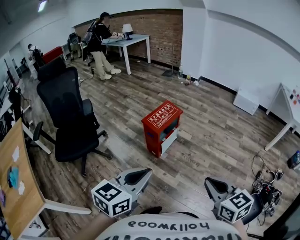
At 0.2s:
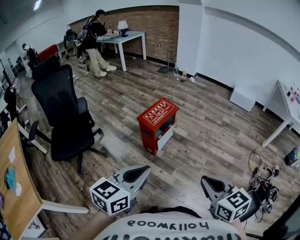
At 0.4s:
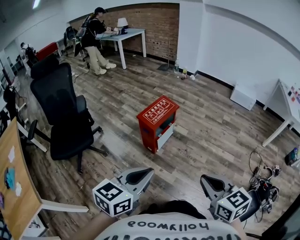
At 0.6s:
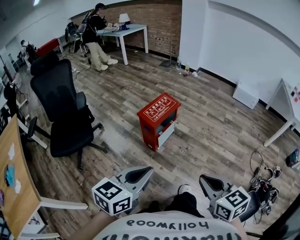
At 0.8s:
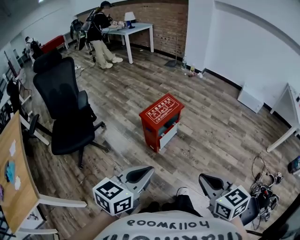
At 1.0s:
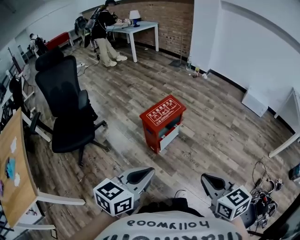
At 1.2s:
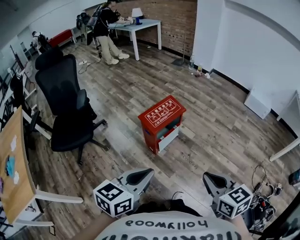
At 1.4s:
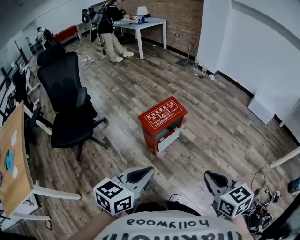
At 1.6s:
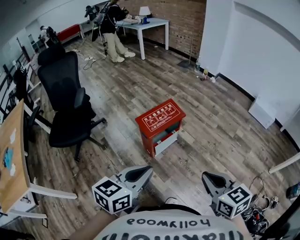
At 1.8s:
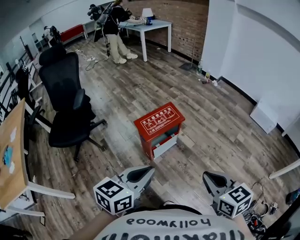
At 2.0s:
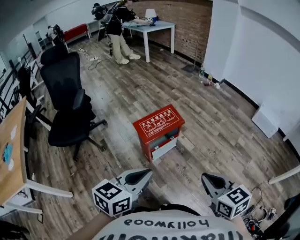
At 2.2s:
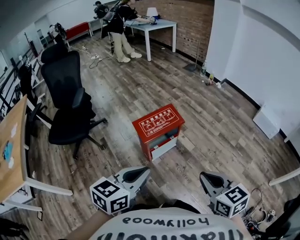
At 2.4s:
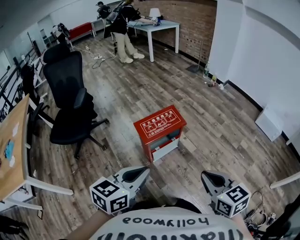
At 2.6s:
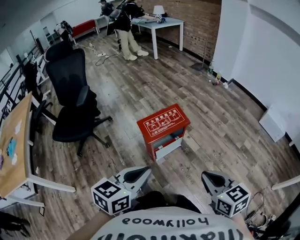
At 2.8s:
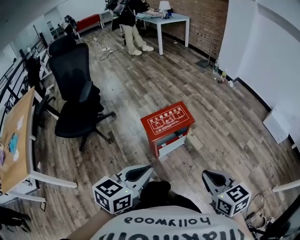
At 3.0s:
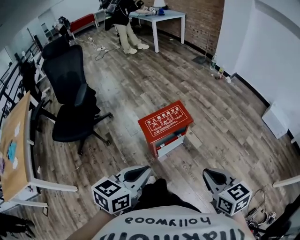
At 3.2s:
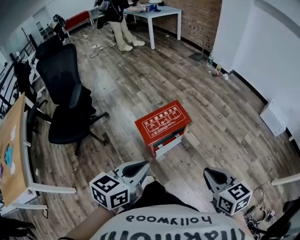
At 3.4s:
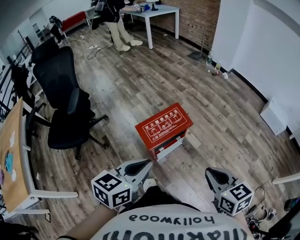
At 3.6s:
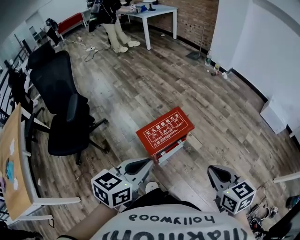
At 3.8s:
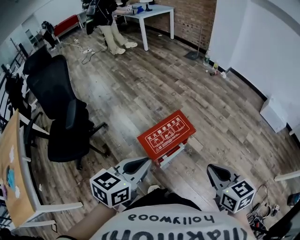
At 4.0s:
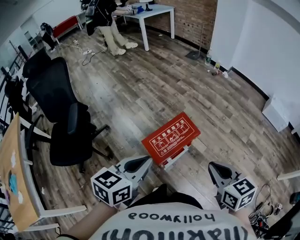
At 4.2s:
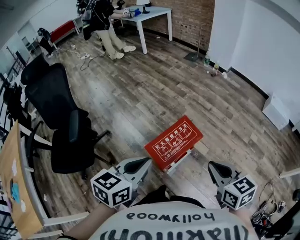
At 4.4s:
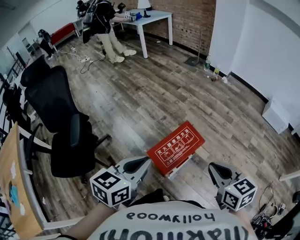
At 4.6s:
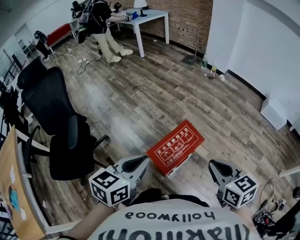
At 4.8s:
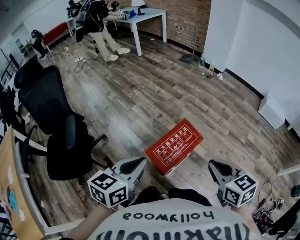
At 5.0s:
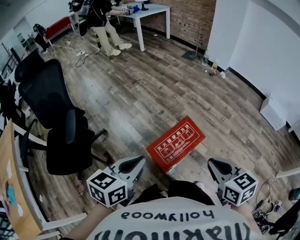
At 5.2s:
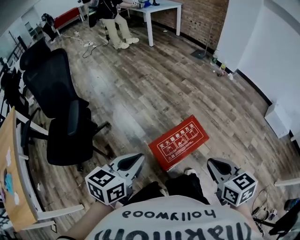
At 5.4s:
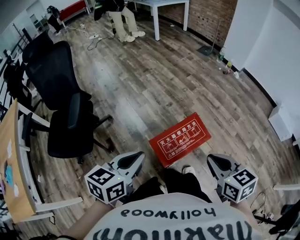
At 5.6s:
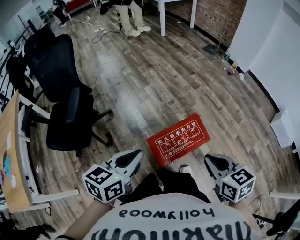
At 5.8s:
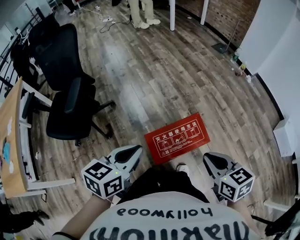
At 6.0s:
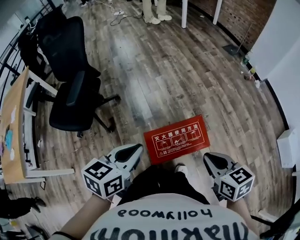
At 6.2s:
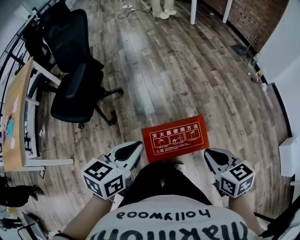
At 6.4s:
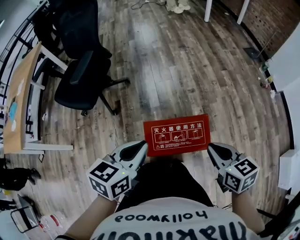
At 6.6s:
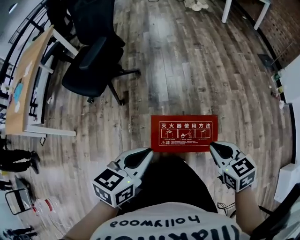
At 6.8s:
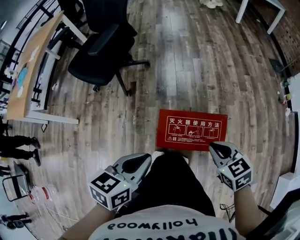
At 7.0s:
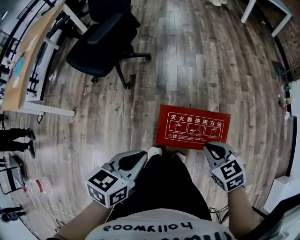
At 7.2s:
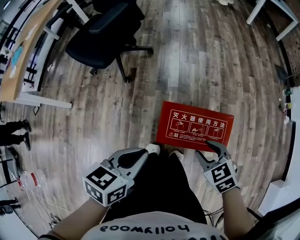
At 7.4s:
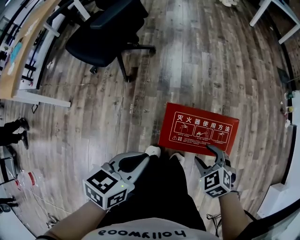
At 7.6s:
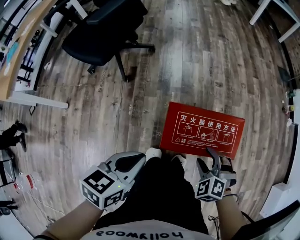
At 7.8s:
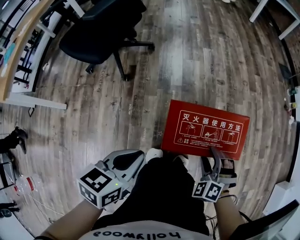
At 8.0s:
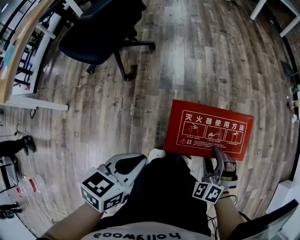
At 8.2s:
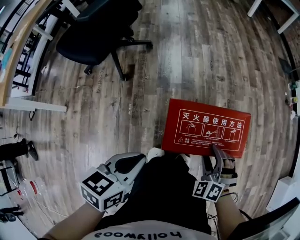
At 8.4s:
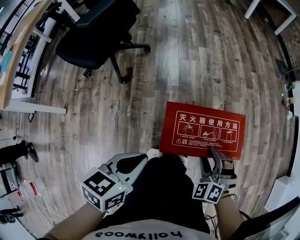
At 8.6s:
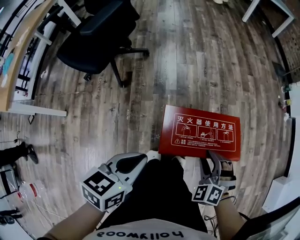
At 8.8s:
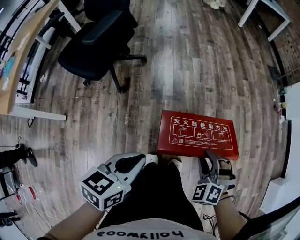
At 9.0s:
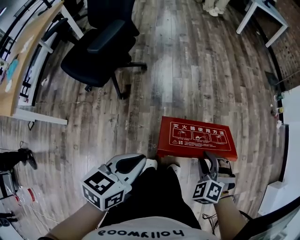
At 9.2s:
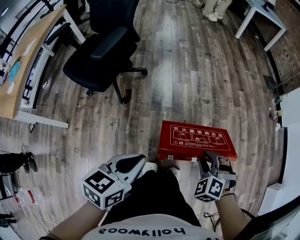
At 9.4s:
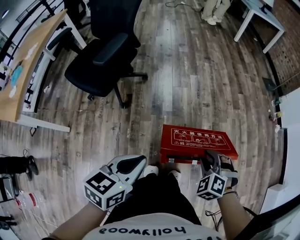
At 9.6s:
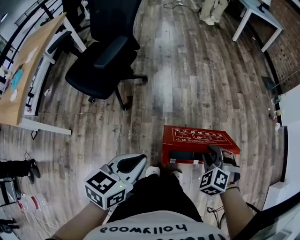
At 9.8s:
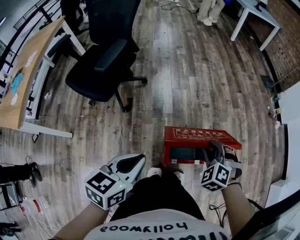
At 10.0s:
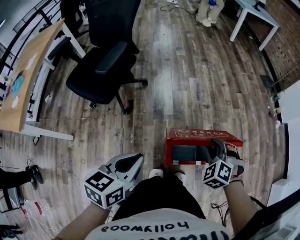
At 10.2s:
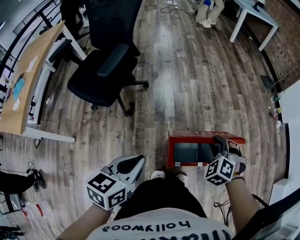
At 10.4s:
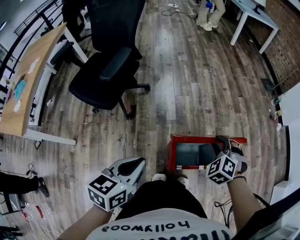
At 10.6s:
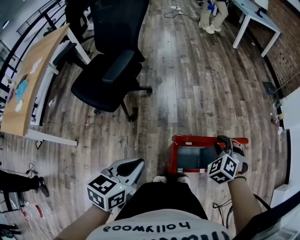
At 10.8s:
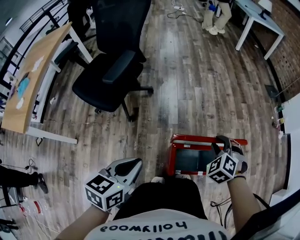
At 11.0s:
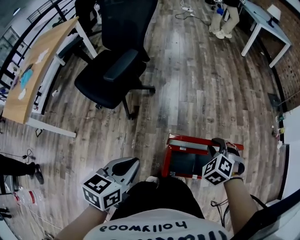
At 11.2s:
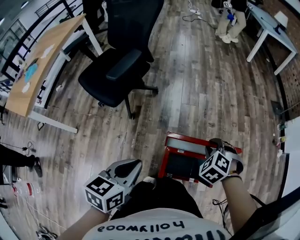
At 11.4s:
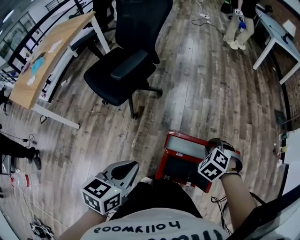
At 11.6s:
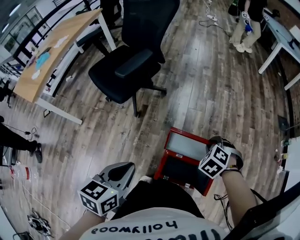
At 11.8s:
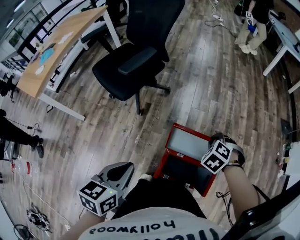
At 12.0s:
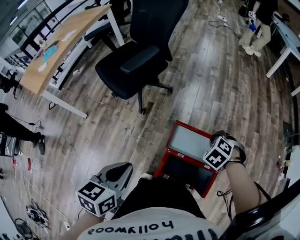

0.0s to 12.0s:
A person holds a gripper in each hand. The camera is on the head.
0.0s to 1.6s: Both grippers travel together forward and to the right, roughly 20 cm.
1.6s to 3.0s: The two grippers go about 10 cm forward.
3.0s to 4.4s: The two grippers go roughly 25 cm forward and to the left.
4.4s to 6.0s: The right gripper moves approximately 15 cm, and changes its angle by some 30 degrees. Meanwhile the left gripper goes about 5 cm downward, and rotates approximately 30 degrees.
6.0s to 7.6s: The left gripper is displaced downward and backward by some 20 cm, and swivels about 20 degrees; the right gripper heads downward, covering approximately 25 cm, twists approximately 70 degrees counterclockwise, seen from behind, and opens.
7.6s to 9.0s: The grippers both shift upward by about 10 cm. The right gripper closes.
9.0s to 10.4s: The left gripper shifts roughly 5 cm to the left. The right gripper heads forward and upward, covering roughly 10 cm.
10.4s to 12.0s: The left gripper swivels about 30 degrees, while the right gripper goes about 15 cm forward, and rotates roughly 20 degrees.

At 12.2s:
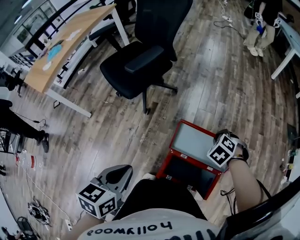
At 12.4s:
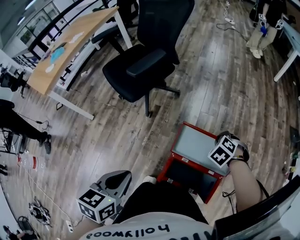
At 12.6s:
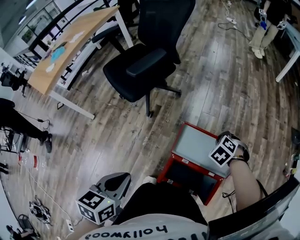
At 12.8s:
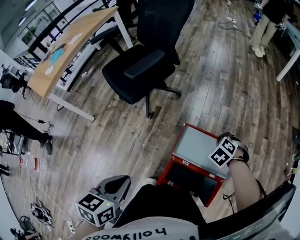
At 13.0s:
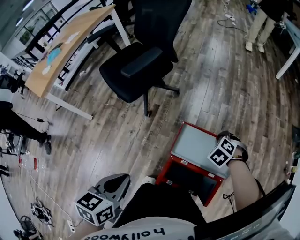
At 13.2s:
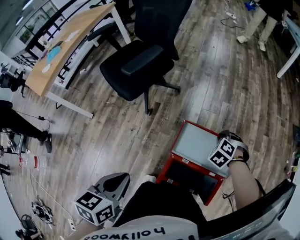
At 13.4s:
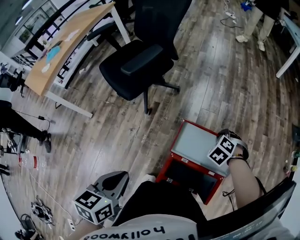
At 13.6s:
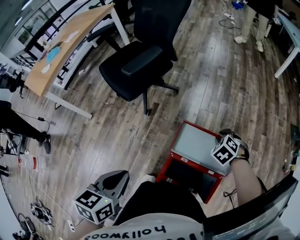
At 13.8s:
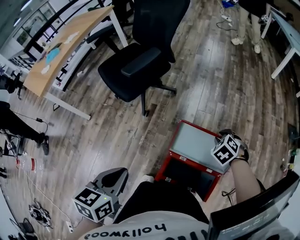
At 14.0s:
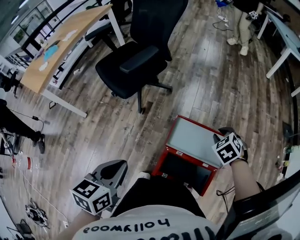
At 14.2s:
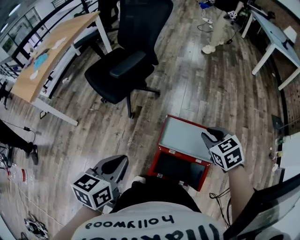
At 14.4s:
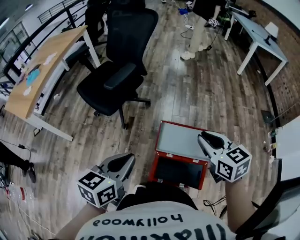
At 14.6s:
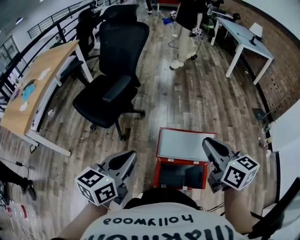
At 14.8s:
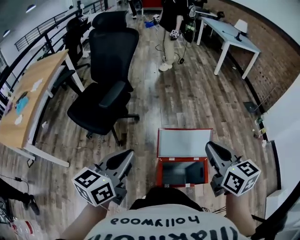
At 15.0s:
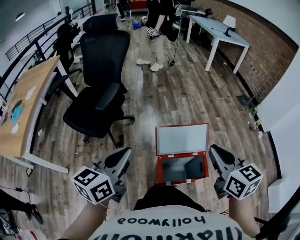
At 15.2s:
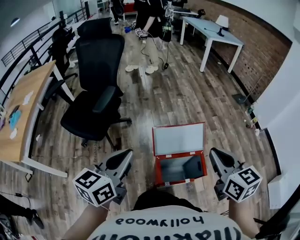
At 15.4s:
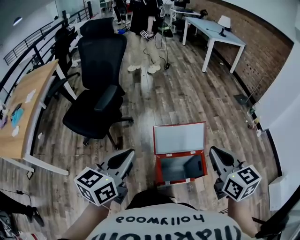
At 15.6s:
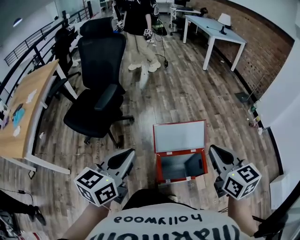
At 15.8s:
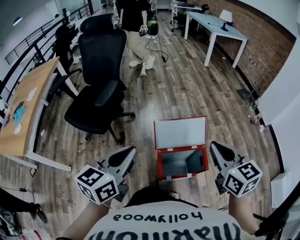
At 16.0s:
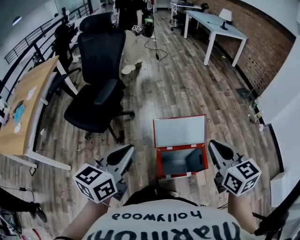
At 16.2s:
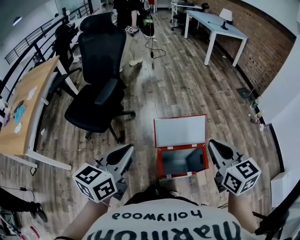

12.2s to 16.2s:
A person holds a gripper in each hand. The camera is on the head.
12.2s to 13.6s: The right gripper changes place by approximately 5 cm.
13.6s to 14.8s: The left gripper travels upward by approximately 15 cm, and tips its fingers upward by approximately 30 degrees. Meanwhile the right gripper moves upward and backward, approximately 40 cm, and angles its fingers upward, by approximately 50 degrees.
14.8s to 16.2s: The right gripper moves backward, roughly 5 cm.

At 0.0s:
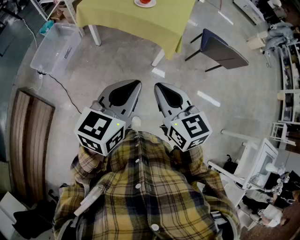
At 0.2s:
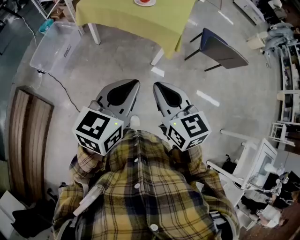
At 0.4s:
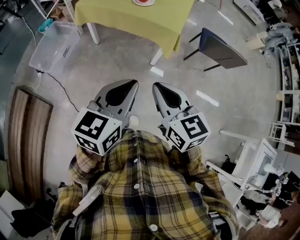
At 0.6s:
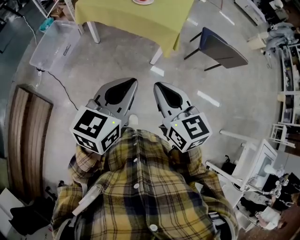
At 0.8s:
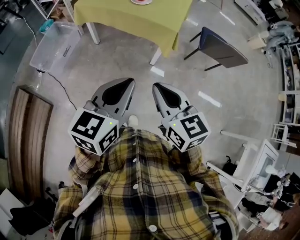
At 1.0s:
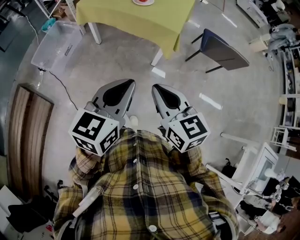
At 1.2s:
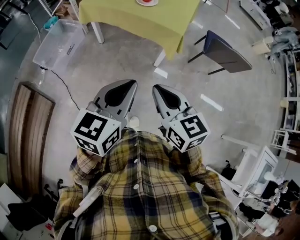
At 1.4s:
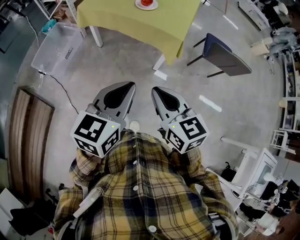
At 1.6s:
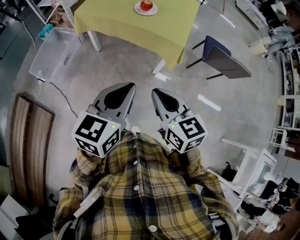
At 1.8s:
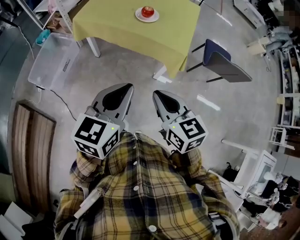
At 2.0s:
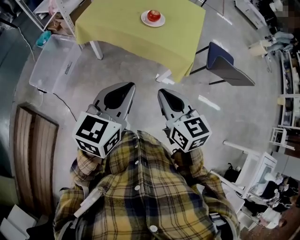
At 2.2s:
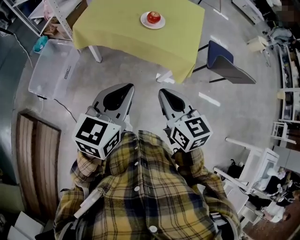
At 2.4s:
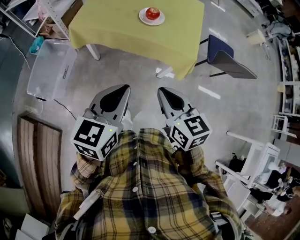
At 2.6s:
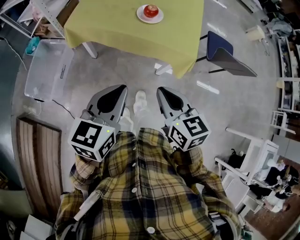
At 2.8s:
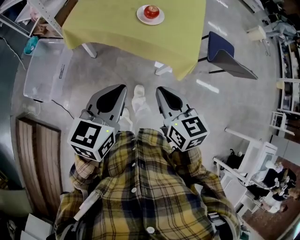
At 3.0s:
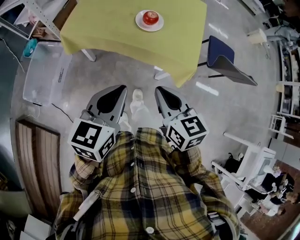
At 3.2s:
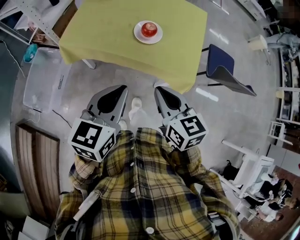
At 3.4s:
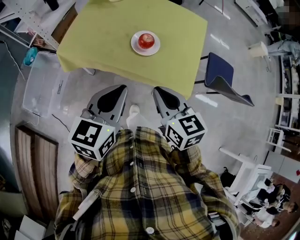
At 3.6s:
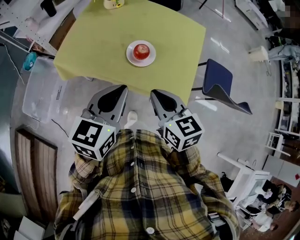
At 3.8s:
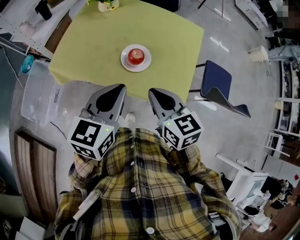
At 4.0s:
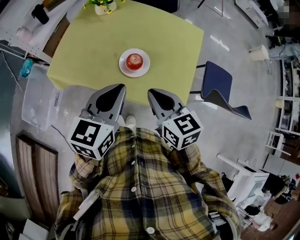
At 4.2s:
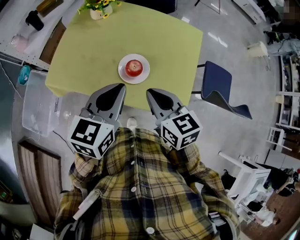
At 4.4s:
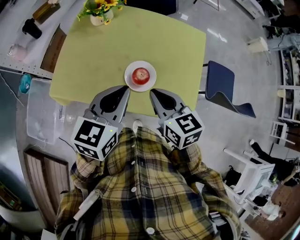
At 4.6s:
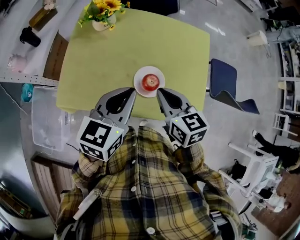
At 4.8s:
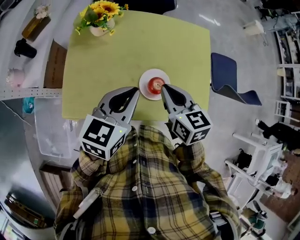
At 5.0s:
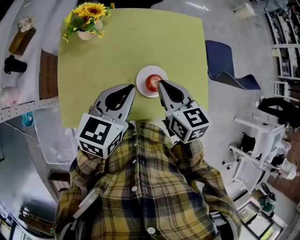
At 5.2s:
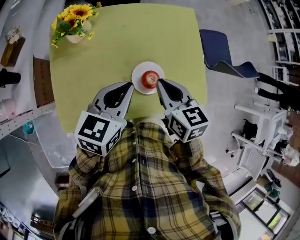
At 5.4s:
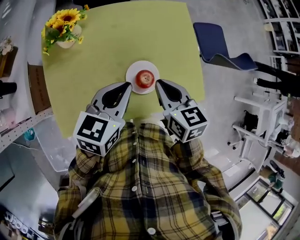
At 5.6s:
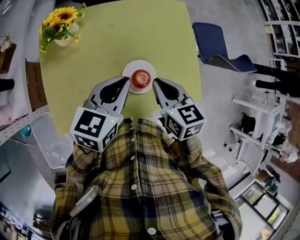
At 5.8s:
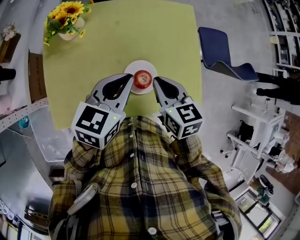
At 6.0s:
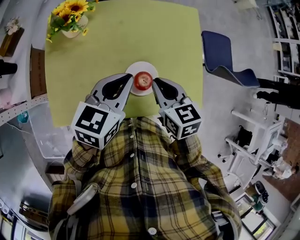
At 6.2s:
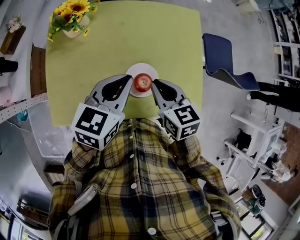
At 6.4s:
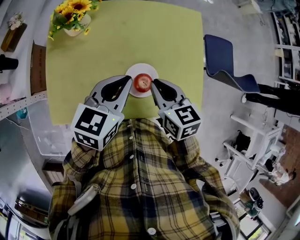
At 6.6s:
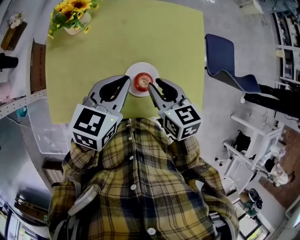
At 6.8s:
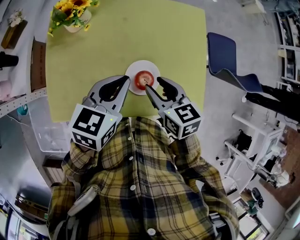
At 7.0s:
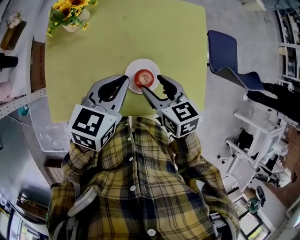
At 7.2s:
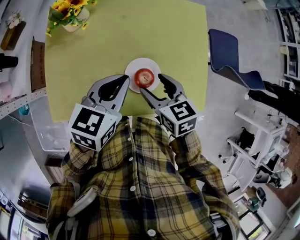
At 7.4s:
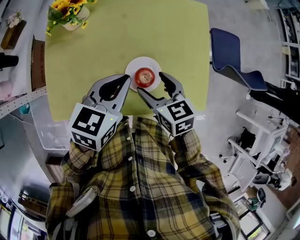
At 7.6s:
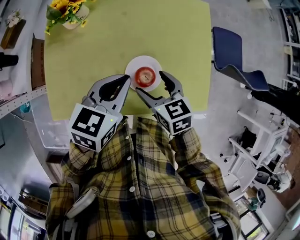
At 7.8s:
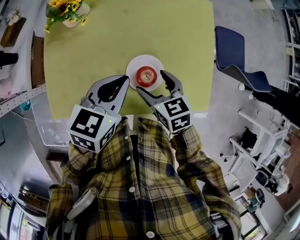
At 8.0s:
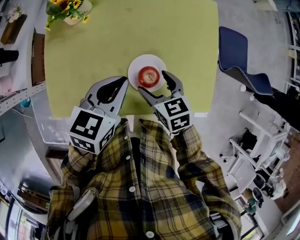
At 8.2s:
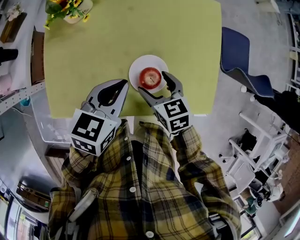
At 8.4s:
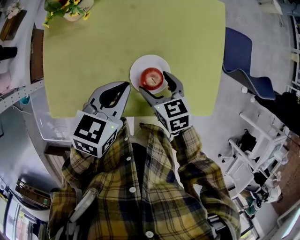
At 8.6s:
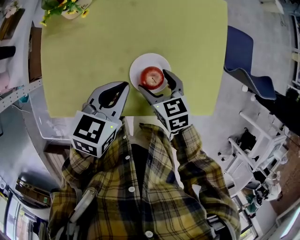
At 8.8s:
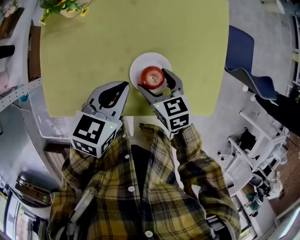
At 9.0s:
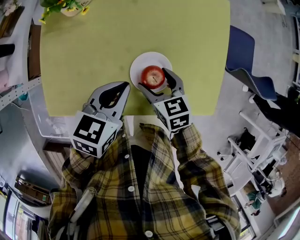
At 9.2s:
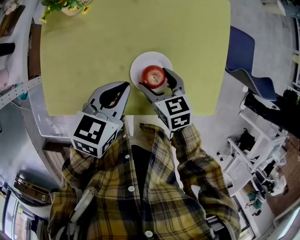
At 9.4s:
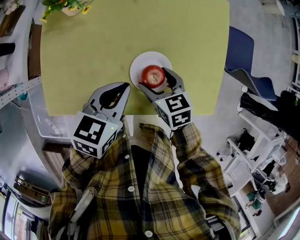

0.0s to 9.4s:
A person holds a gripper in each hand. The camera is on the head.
0.0s to 1.6s: Both grippers travel together forward, about 10 cm.
1.6s to 3.2s: Both grippers move forward, roughly 30 cm.
3.2s to 4.8s: Both grippers travel together forward, roughly 30 cm.
4.8s to 6.2s: The left gripper travels forward by approximately 5 cm, while the right gripper moves roughly 5 cm.
6.2s to 7.8s: The right gripper is displaced downward by some 10 cm, and opens its fingers.
7.8s to 9.4s: Both grippers travel together downward, some 5 cm.
